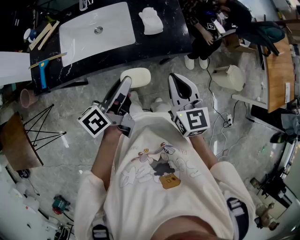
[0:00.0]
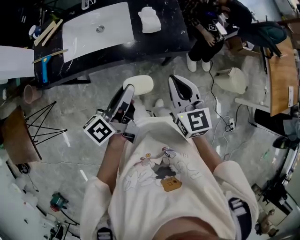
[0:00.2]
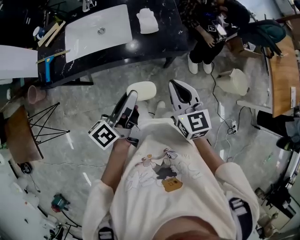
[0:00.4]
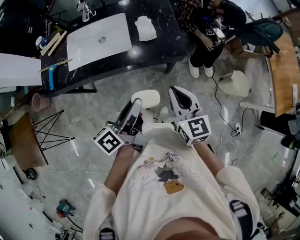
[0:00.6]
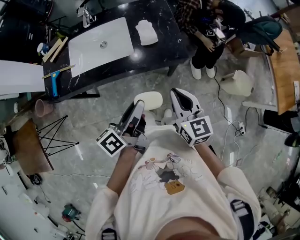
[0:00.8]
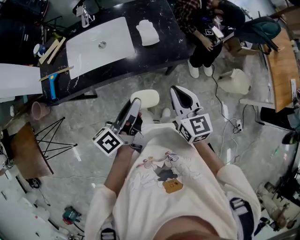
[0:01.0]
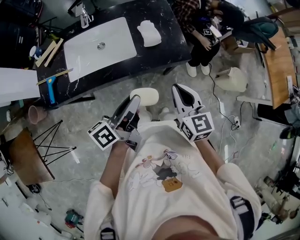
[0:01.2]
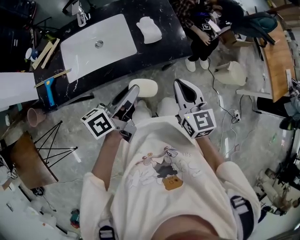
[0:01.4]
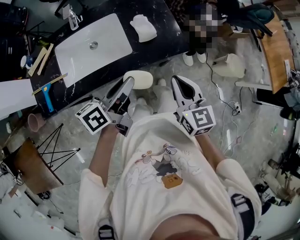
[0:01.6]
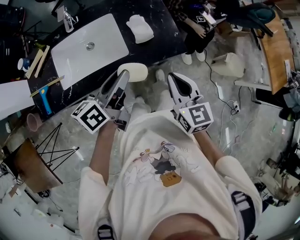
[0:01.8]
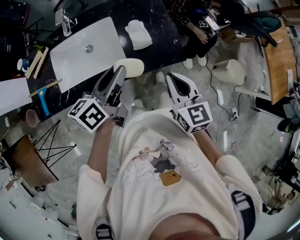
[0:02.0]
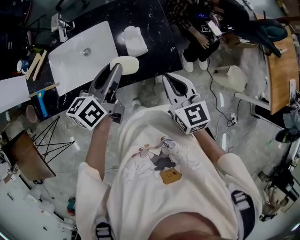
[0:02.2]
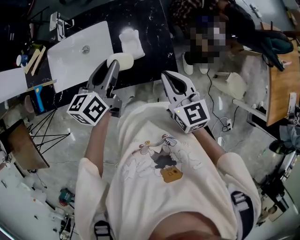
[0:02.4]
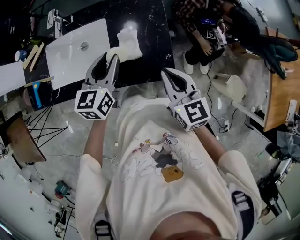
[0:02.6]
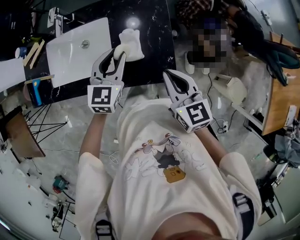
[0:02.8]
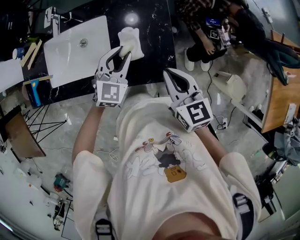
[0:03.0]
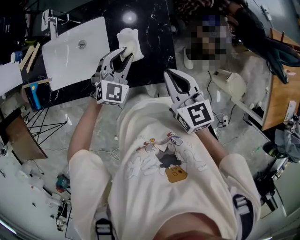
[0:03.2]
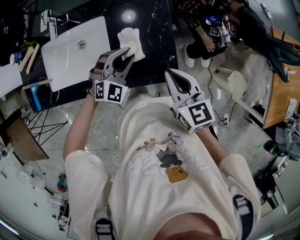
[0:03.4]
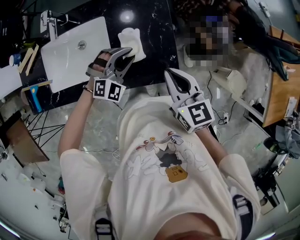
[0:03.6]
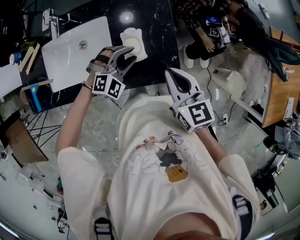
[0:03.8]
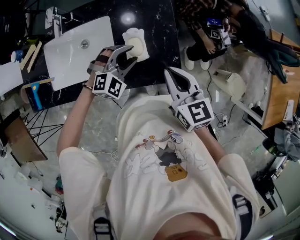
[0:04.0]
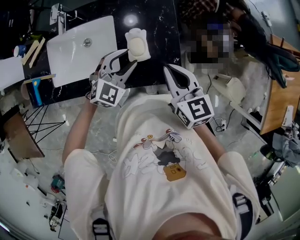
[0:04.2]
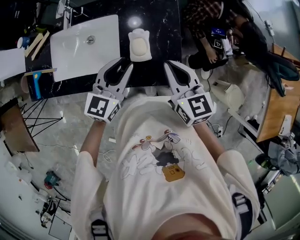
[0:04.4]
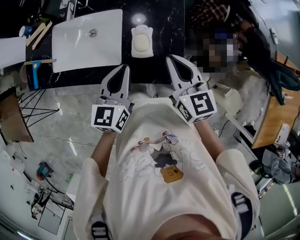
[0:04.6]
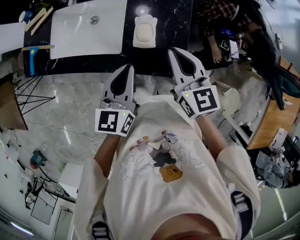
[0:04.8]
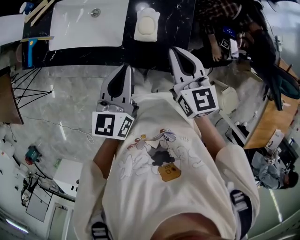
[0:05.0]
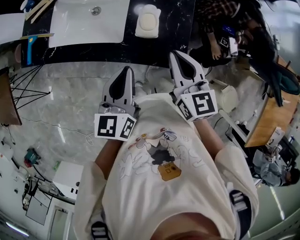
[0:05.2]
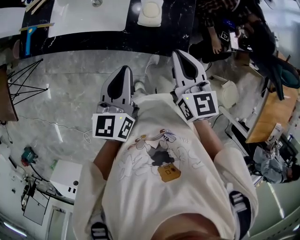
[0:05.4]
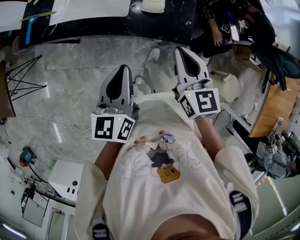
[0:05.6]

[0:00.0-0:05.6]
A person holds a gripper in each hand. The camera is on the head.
0:00.0 to 0:01.4: The left gripper reaches approximately 10 cm backward, then returns.
0:01.4 to 0:02.8: The right gripper moves approximately 25 cm, and changes its angle by roughly 20 degrees, while the left gripper changes place by roughly 30 cm, and twists about 60 degrees clockwise, seen from behind.
0:02.8 to 0:04.2: The left gripper swivels roughly 30 degrees.
0:04.2 to 0:05.6: The left gripper is displaced backward by some 25 cm, rotates around the line of its fingers by roughly 60 degrees, counterclockwise from behind, and closes up. The right gripper travels backward by approximately 15 cm.

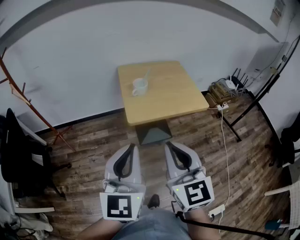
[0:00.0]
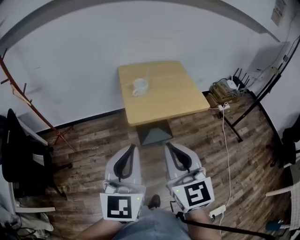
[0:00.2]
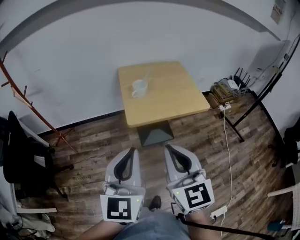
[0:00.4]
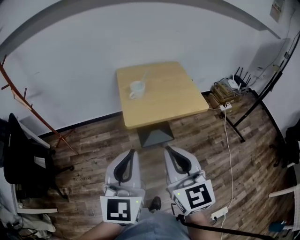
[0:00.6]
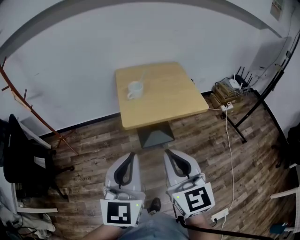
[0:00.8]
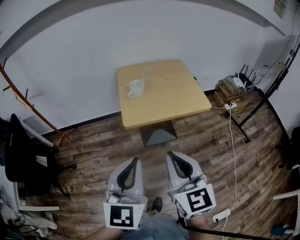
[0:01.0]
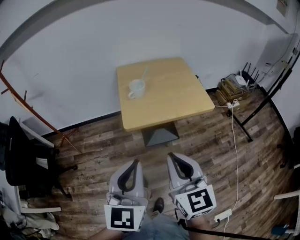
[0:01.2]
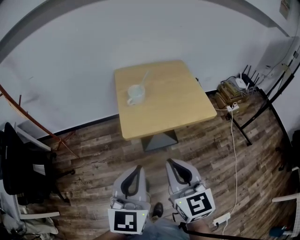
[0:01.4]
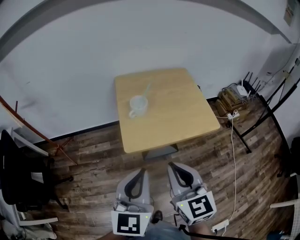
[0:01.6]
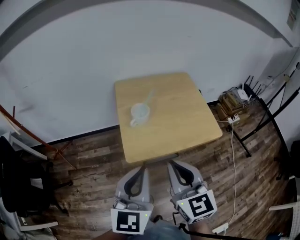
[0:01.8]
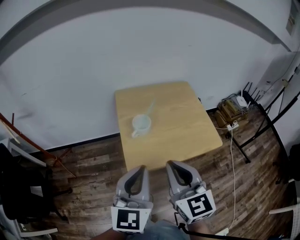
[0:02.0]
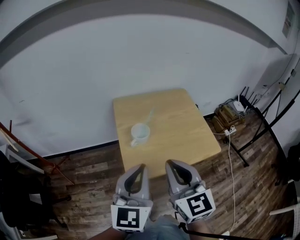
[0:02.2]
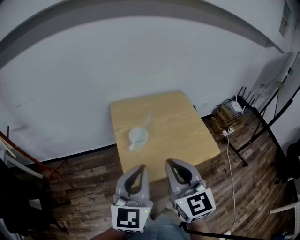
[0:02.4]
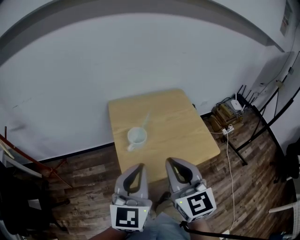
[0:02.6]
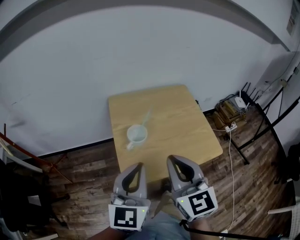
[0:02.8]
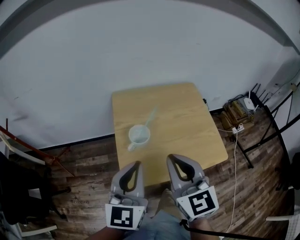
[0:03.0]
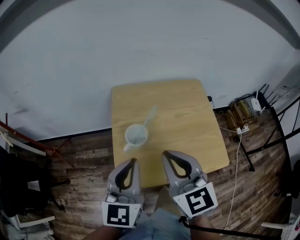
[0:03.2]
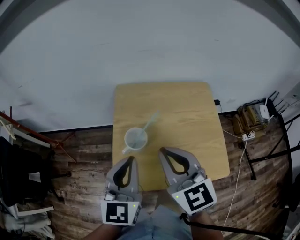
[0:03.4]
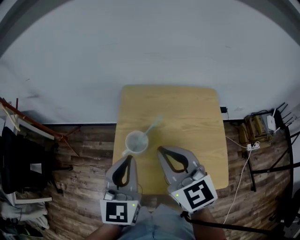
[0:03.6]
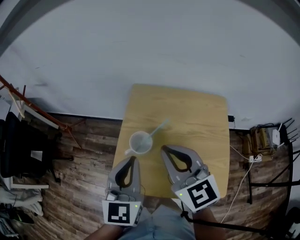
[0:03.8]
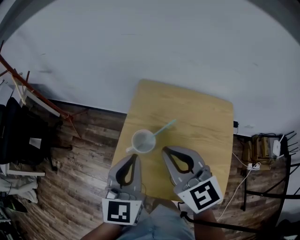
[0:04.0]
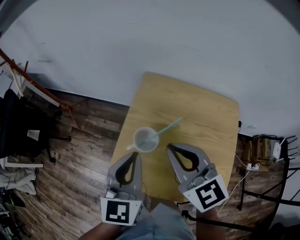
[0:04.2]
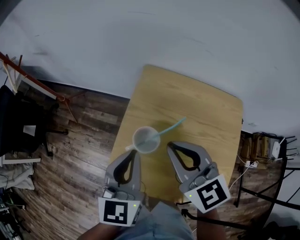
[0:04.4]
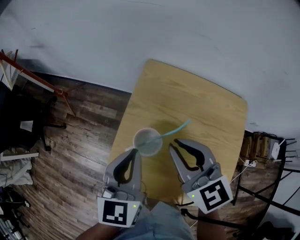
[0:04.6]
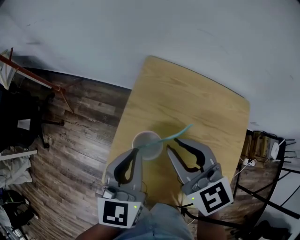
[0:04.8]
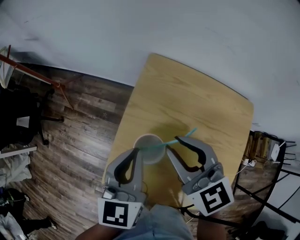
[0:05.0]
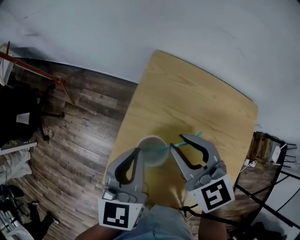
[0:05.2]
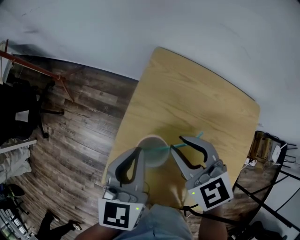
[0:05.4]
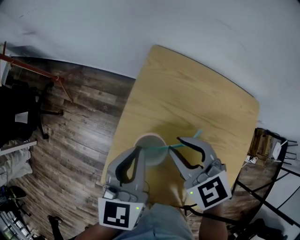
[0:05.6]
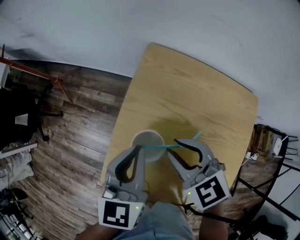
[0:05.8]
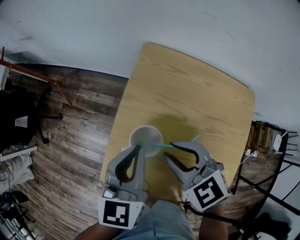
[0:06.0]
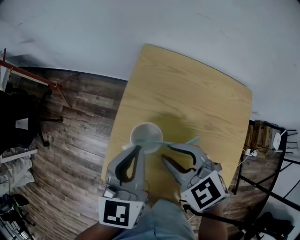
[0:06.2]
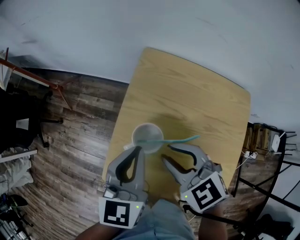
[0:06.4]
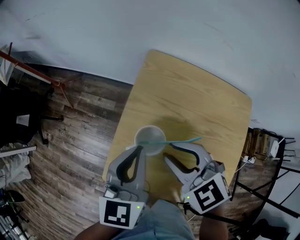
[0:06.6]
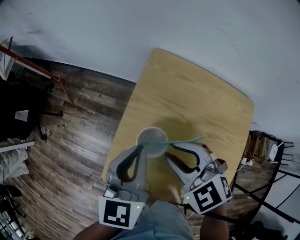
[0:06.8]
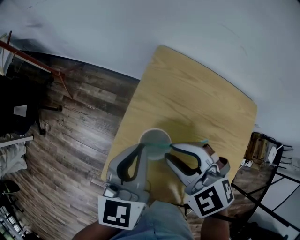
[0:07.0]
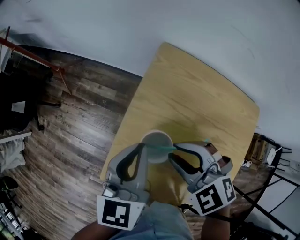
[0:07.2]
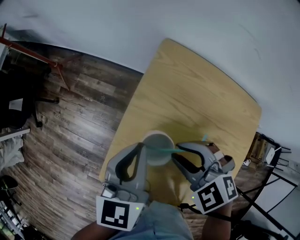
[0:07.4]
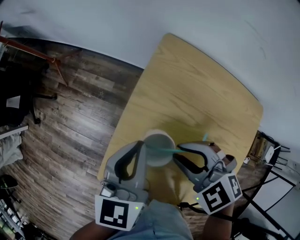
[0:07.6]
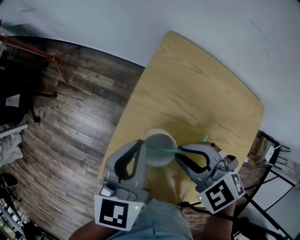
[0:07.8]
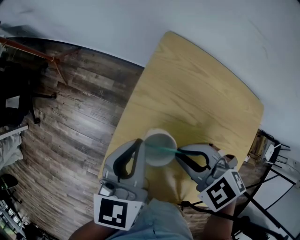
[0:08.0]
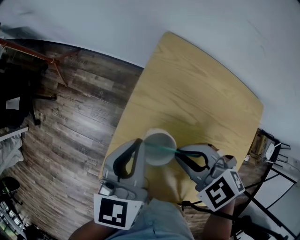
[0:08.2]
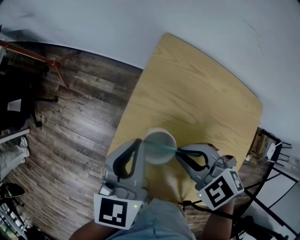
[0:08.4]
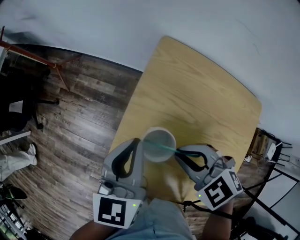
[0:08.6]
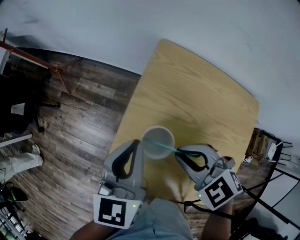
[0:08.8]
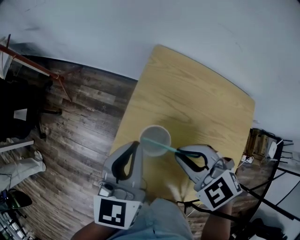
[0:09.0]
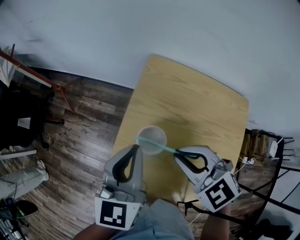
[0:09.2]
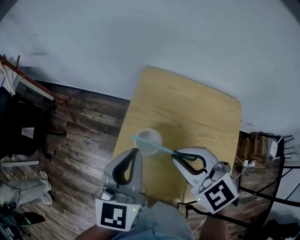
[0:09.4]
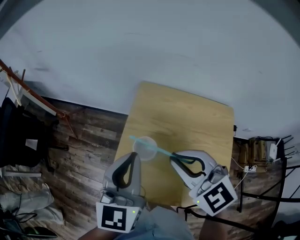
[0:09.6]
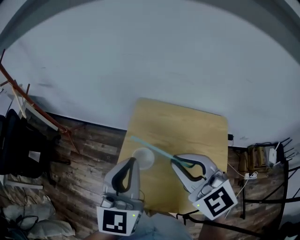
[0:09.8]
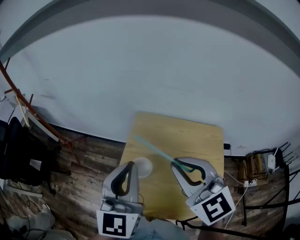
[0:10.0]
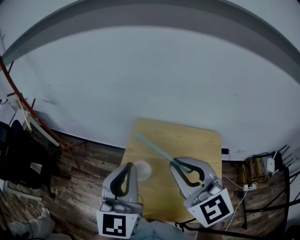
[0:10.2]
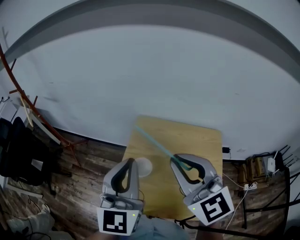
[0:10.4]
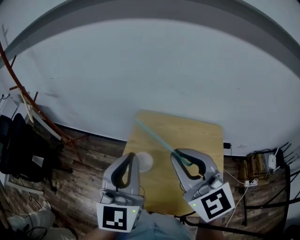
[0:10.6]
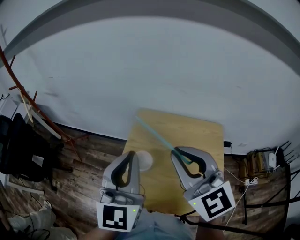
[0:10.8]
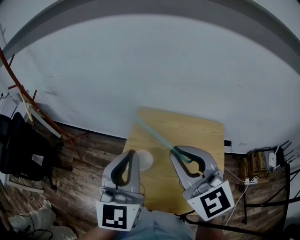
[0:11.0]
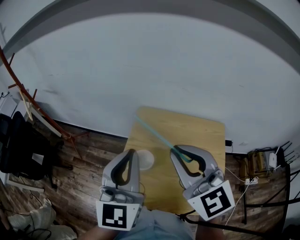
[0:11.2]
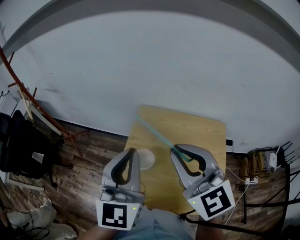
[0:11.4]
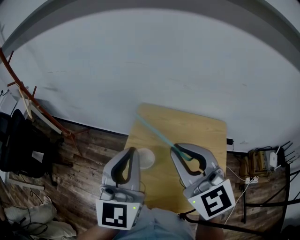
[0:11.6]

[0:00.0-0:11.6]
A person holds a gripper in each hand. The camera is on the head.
0:00.0 to 0:01.4: The left gripper is displaced to the right, downward and forward by approximately 10 cm. The right gripper goes roughly 10 cm downward, forward and to the right.
0:01.4 to 0:02.8: The grippers both shift forward by about 25 cm.
0:02.8 to 0:04.4: The right gripper moves roughly 20 cm, and turns by roughly 50 degrees. Meanwhile the left gripper shifts by about 15 cm, and rotates some 40 degrees.
0:04.4 to 0:05.8: The right gripper travels downward by about 10 cm, turns by approximately 20 degrees, and opens. Meanwhile the left gripper shifts approximately 5 cm downward.
0:05.8 to 0:07.2: The right gripper changes its angle by about 30 degrees.
0:07.2 to 0:08.8: There are only small adjustments of the grippers.
0:08.8 to 0:10.2: The grippers both shift upward by about 25 cm. The left gripper rotates approximately 30 degrees. Meanwhile the right gripper angles its fingers upward, by approximately 40 degrees.
0:10.2 to 0:11.6: There are only small adjustments of the grippers.

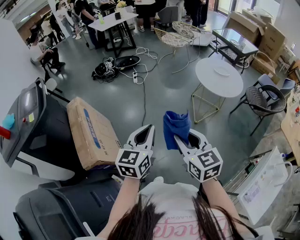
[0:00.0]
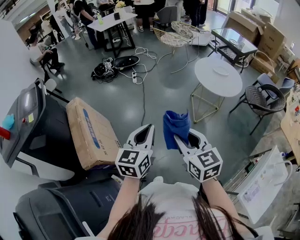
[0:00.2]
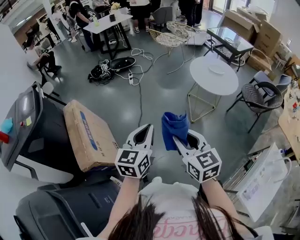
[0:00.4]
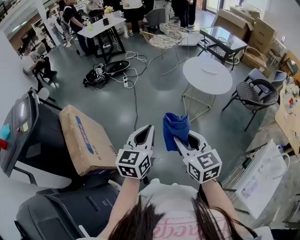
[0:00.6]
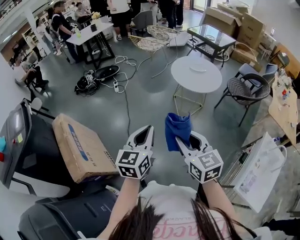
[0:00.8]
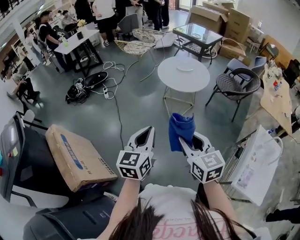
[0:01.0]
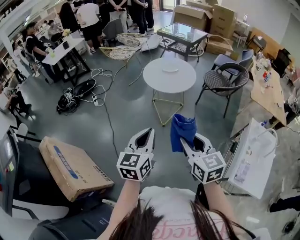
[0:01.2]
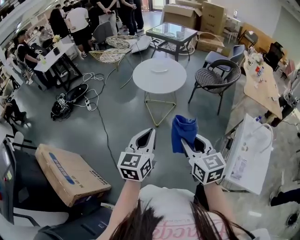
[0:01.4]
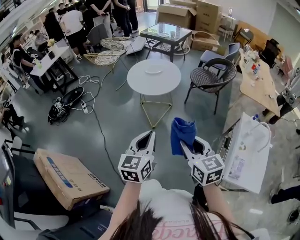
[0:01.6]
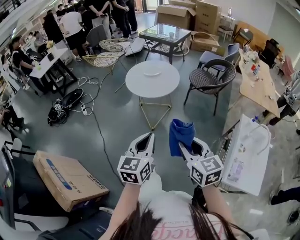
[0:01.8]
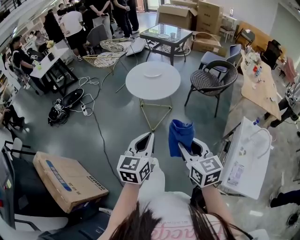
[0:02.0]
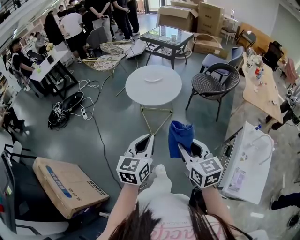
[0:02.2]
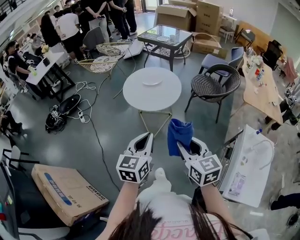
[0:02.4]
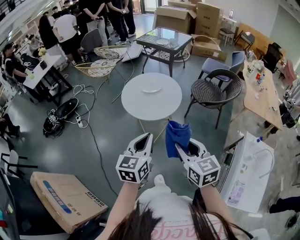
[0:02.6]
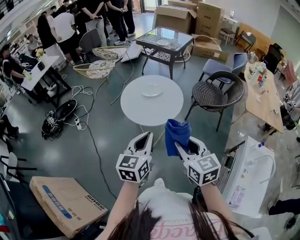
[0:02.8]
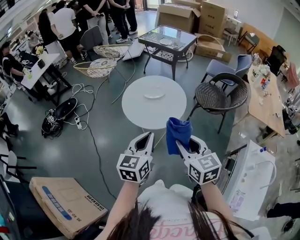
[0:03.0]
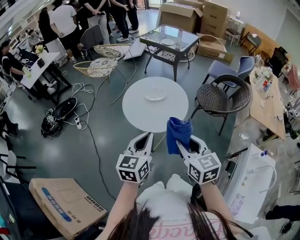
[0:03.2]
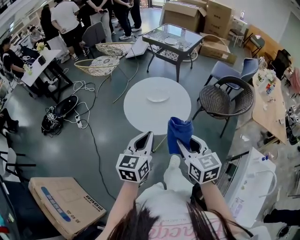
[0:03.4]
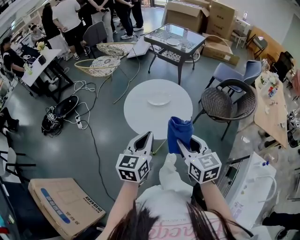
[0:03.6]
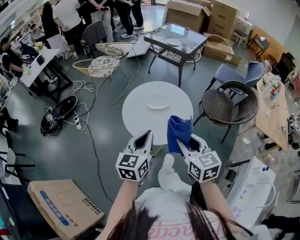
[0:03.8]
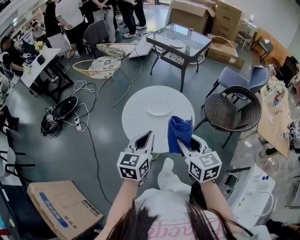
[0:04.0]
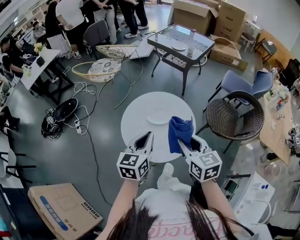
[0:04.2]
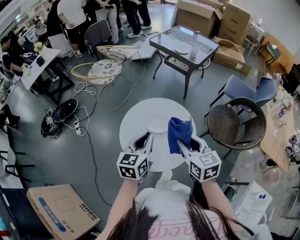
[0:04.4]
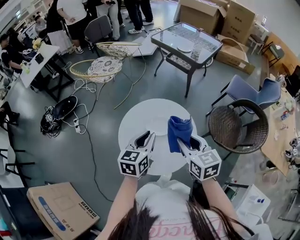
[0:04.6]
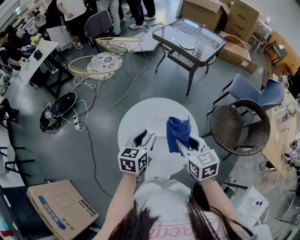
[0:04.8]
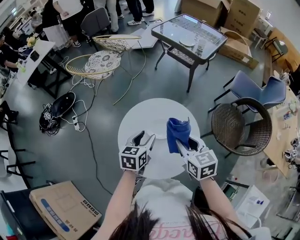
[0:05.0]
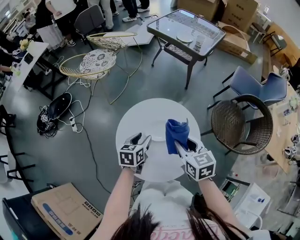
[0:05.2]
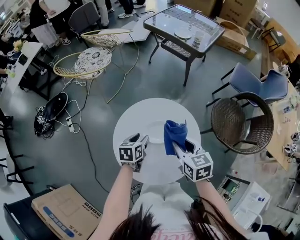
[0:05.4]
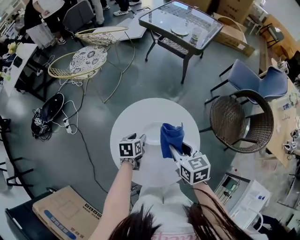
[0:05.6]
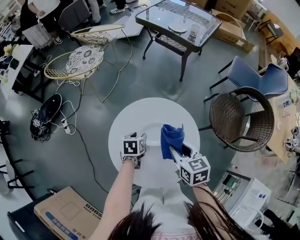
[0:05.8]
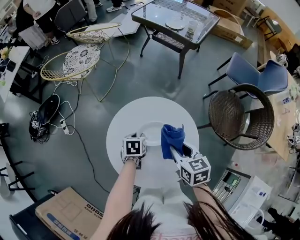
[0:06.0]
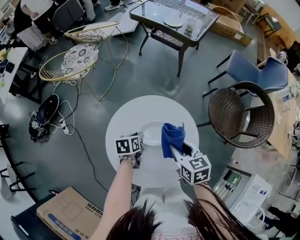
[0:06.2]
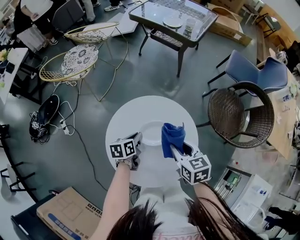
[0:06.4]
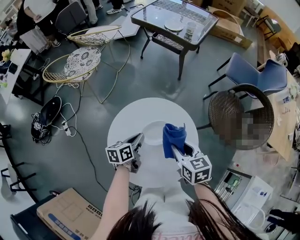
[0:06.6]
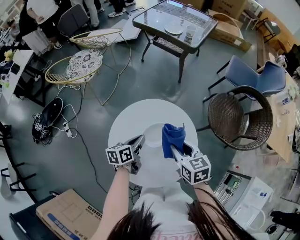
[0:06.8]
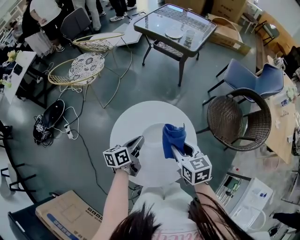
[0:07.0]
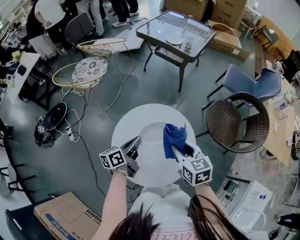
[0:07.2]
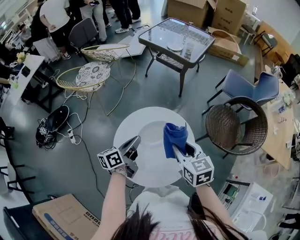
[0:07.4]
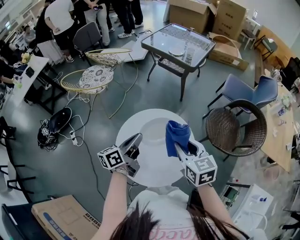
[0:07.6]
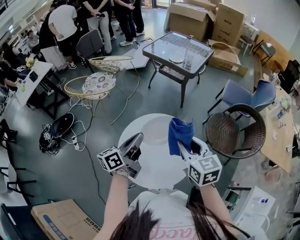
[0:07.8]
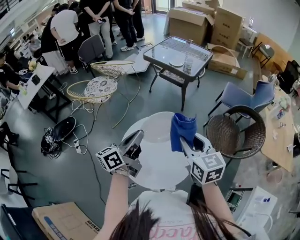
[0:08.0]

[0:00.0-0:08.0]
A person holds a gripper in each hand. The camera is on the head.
0:00.0 to 0:01.6: The left gripper ends up approximately 30 cm from where it was, and swivels roughly 30 degrees, while the right gripper moves some 30 cm, and changes its angle by roughly 30 degrees.
0:01.6 to 0:03.2: Both grippers move forward, about 35 cm.
0:03.2 to 0:04.8: Both grippers travel together forward, approximately 35 cm. The left gripper opens.
0:04.8 to 0:06.4: The right gripper moves downward, roughly 15 cm, while the left gripper heads downward and forward, covering roughly 20 cm, rotates roughly 30 degrees, and closes.
0:06.4 to 0:08.0: Both grippers move upward, about 25 cm. The right gripper rotates about 20 degrees. Meanwhile the left gripper tips its fingers upward by approximately 50 degrees.
